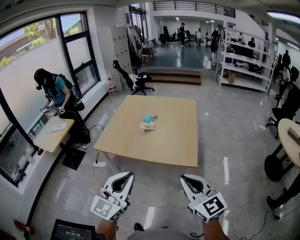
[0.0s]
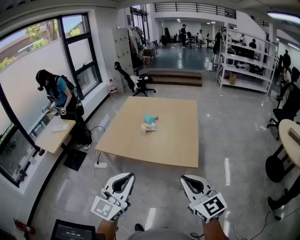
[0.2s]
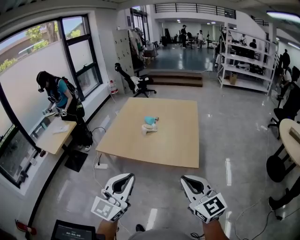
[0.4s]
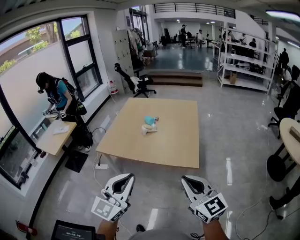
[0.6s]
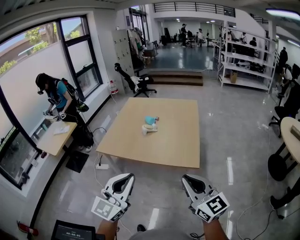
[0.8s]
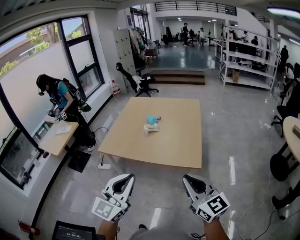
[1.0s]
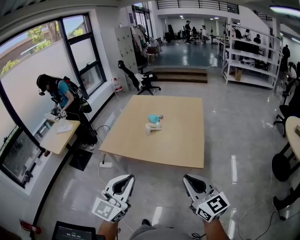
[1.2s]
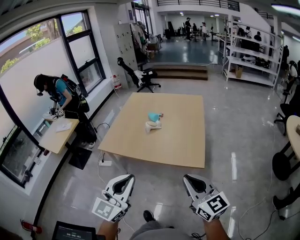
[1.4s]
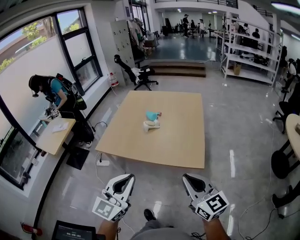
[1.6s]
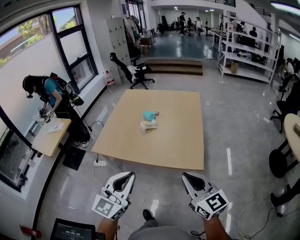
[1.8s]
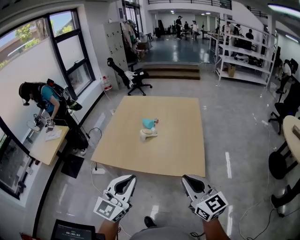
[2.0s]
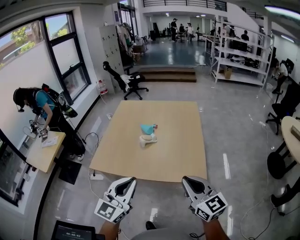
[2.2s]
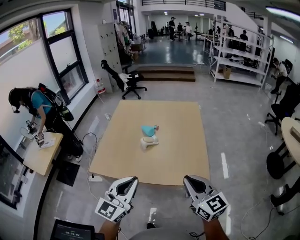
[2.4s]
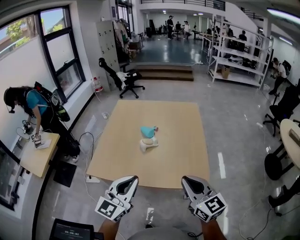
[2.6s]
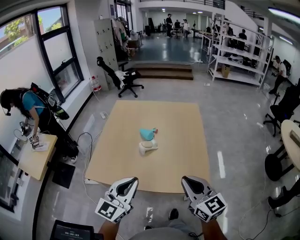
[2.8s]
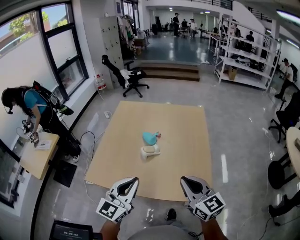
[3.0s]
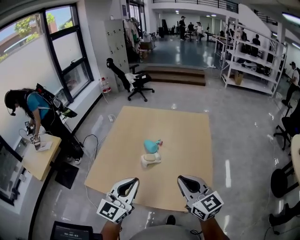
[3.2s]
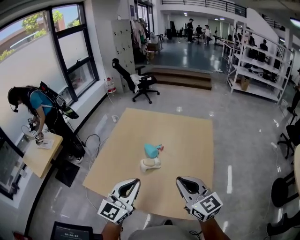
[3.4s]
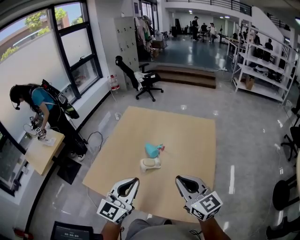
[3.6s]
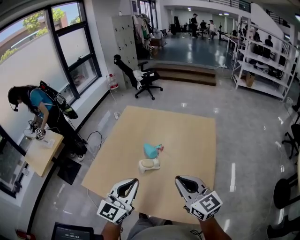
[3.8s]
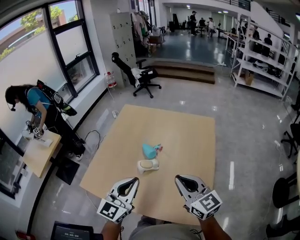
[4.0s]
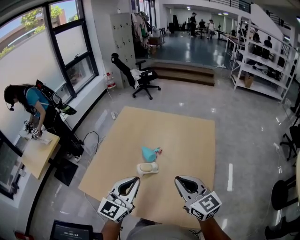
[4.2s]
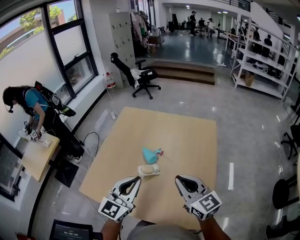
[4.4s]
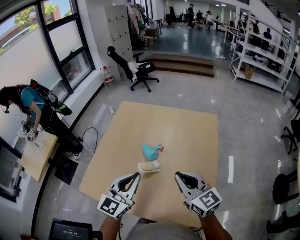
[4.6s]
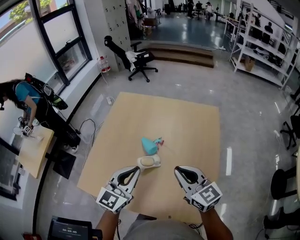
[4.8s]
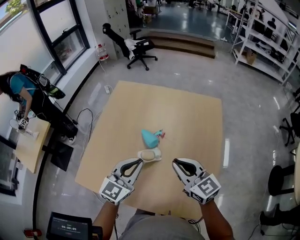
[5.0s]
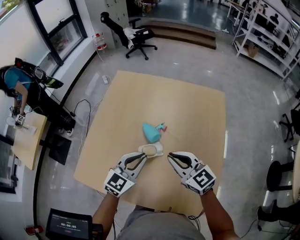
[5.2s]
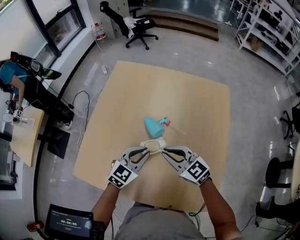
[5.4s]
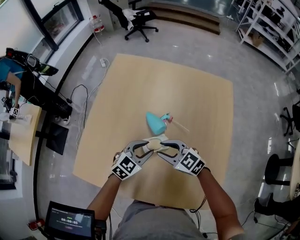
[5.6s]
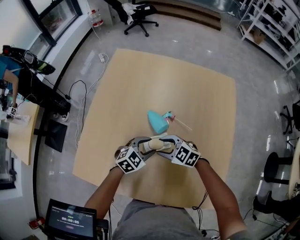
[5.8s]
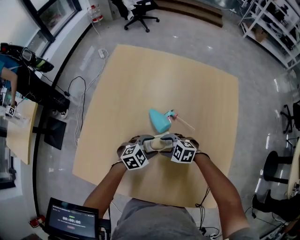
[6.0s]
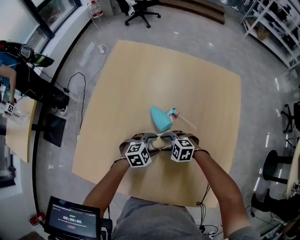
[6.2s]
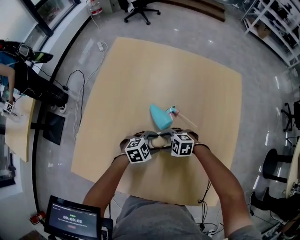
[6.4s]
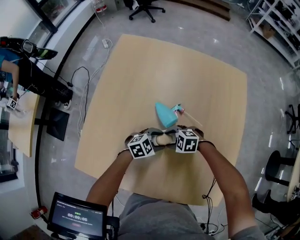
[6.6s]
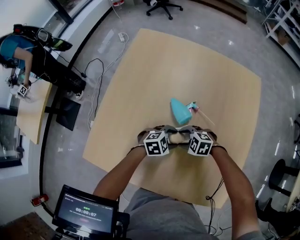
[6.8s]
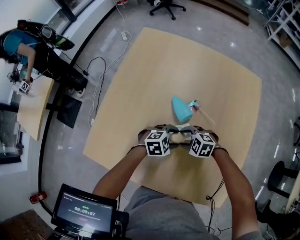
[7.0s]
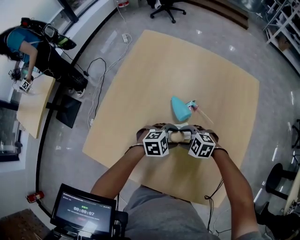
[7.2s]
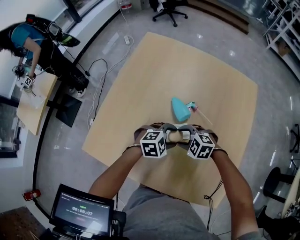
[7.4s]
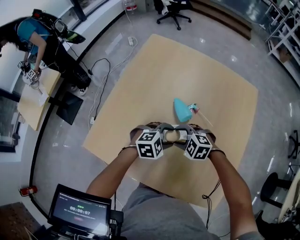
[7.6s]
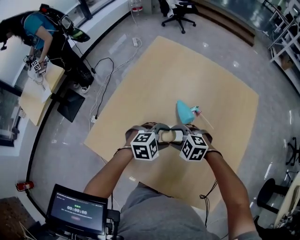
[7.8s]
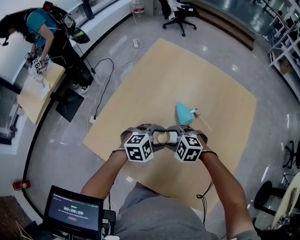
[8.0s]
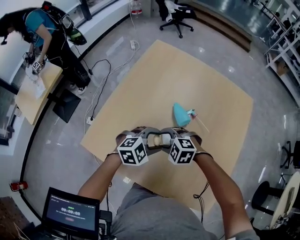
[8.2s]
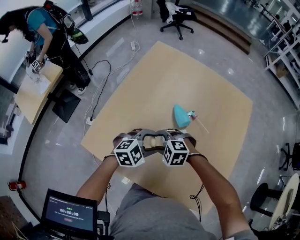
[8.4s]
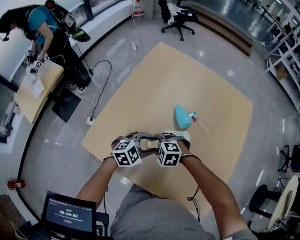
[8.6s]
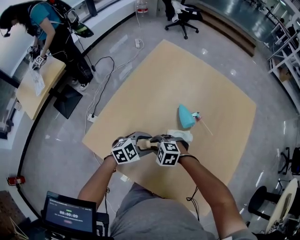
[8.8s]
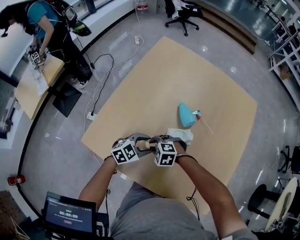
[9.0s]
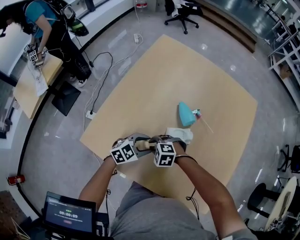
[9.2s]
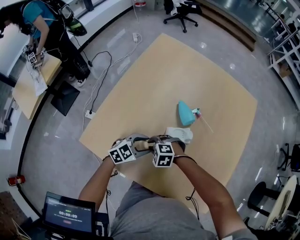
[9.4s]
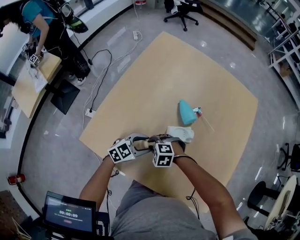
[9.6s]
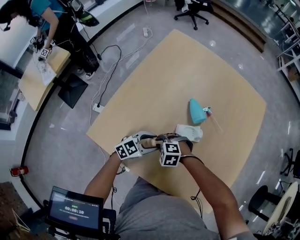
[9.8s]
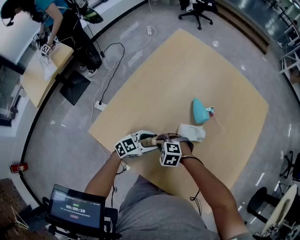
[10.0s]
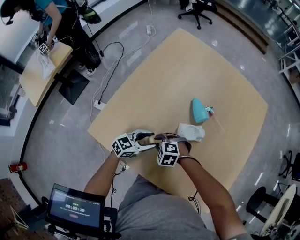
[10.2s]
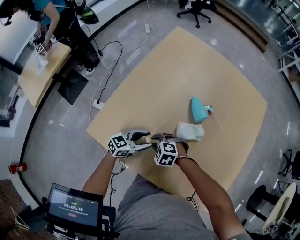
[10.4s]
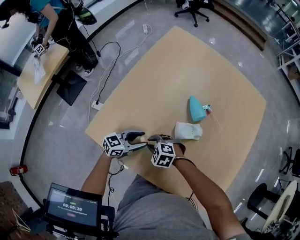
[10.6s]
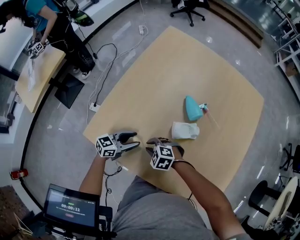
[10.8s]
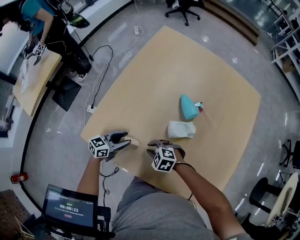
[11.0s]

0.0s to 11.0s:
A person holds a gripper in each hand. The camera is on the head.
0.0s to 1.6s: The grippers both shift forward by approximately 10 cm.
1.6s to 3.2s: Both grippers move forward, some 35 cm.
3.2s to 4.8s: The two grippers go roughly 20 cm forward.
4.8s to 6.2s: The grippers both shift downward by roughly 35 cm. The right gripper points its fingers roughly 50 degrees further downward, and opens. Meanwhile the left gripper tips its fingers downward by approximately 50 degrees, and opens.
6.2s to 7.8s: Both grippers travel together upward, roughly 10 cm.
7.8s to 9.4s: The right gripper shifts about 10 cm downward, and closes, while the left gripper changes place by roughly 10 cm, and changes its angle by roughly 30 degrees.
9.4s to 11.0s: The right gripper changes place by approximately 5 cm, while the left gripper moves some 10 cm, and swivels approximately 40 degrees.

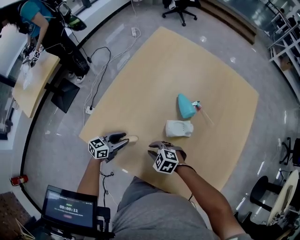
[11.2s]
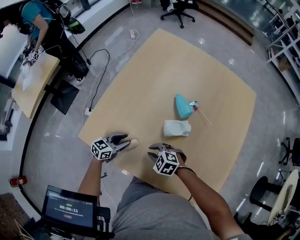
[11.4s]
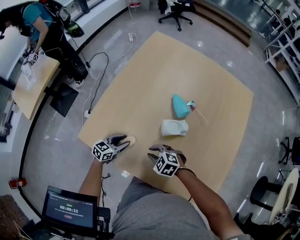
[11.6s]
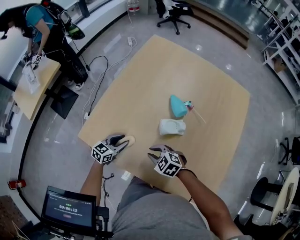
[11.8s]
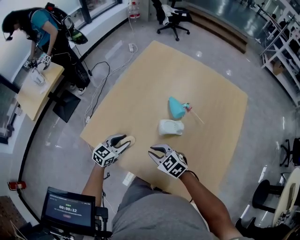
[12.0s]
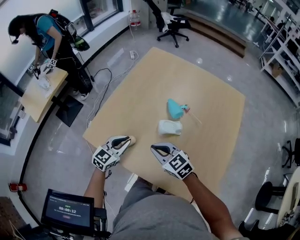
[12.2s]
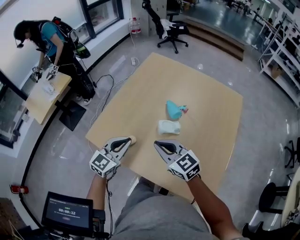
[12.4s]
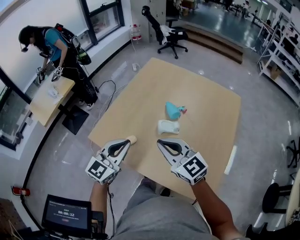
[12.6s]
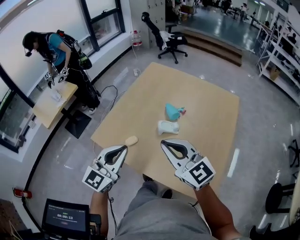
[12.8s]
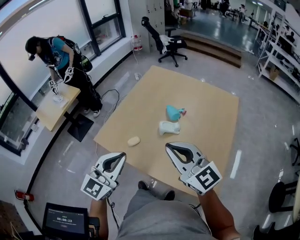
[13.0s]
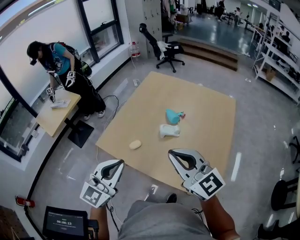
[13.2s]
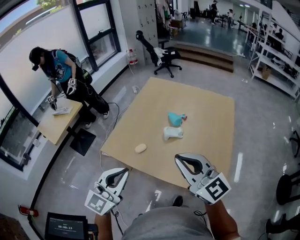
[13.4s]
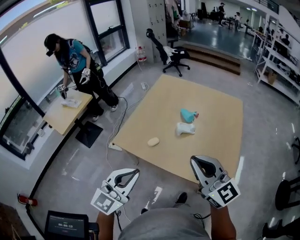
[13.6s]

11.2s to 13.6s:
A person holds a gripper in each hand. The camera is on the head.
11.2s to 12.4s: The two grippers go approximately 25 cm upward. The right gripper points its fingers some 40 degrees further upward. Meanwhile the left gripper rotates roughly 40 degrees, and closes up.
12.4s to 13.6s: Both grippers travel together backward and upward, about 30 cm. The right gripper changes its angle by some 30 degrees.

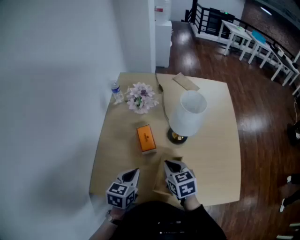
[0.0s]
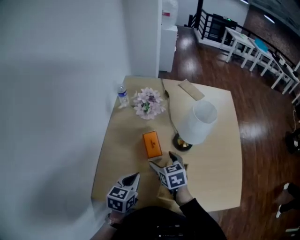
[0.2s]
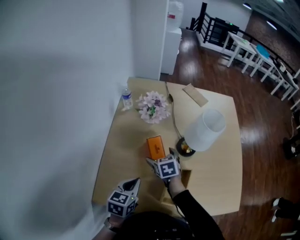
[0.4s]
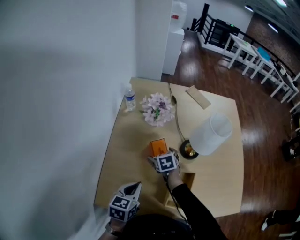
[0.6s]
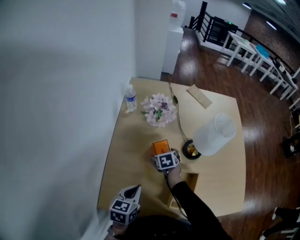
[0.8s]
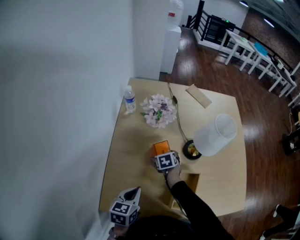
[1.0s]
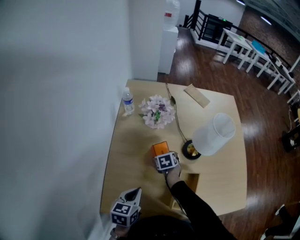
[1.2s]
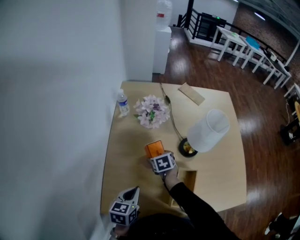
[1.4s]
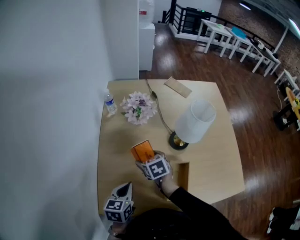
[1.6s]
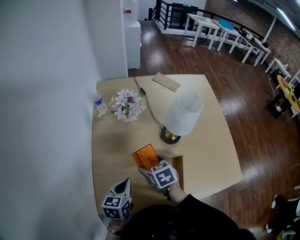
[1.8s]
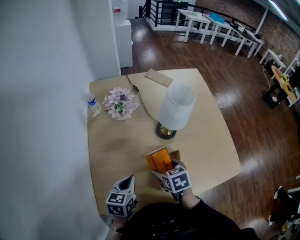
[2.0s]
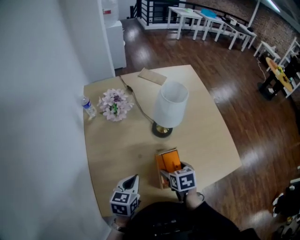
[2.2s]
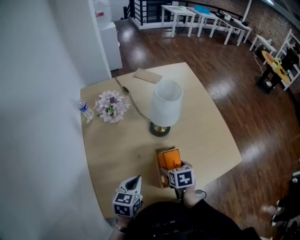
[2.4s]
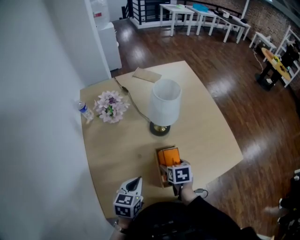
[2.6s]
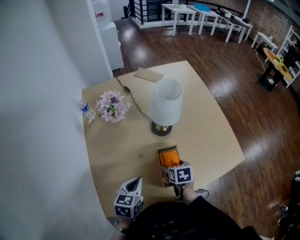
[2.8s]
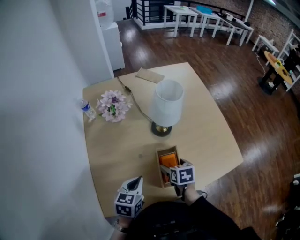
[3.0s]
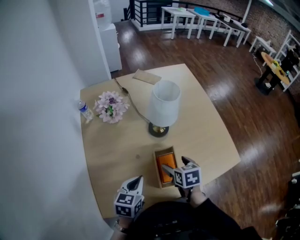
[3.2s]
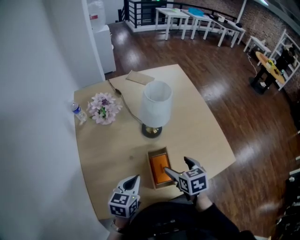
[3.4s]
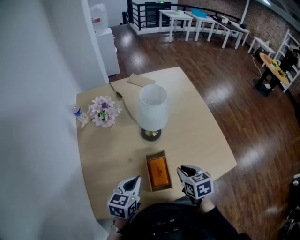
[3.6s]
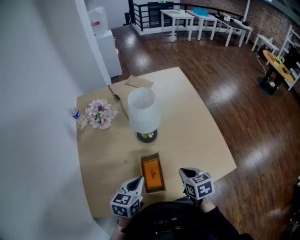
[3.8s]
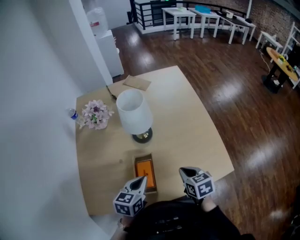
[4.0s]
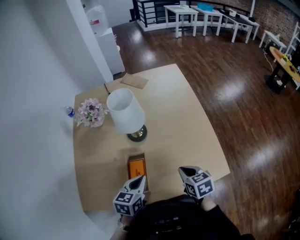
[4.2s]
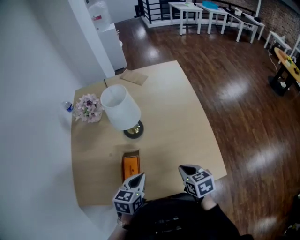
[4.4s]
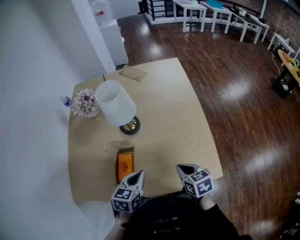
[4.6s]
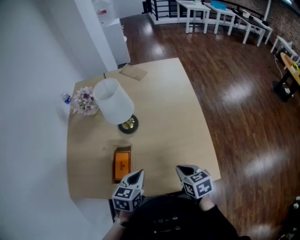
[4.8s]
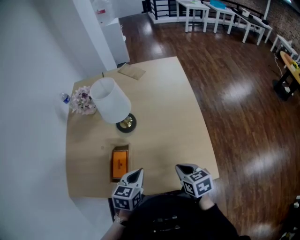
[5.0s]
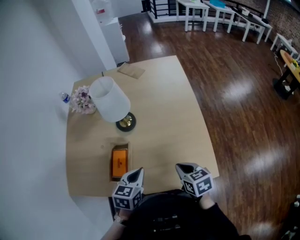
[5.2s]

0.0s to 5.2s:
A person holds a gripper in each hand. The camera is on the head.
0.0s to 1.8s: The two grippers go roughly 10 cm to the left. The right gripper moves roughly 15 cm downward and comes back, and opens up.
1.8s to 3.4s: The right gripper shifts some 20 cm to the right, and turns by roughly 20 degrees. Meanwhile the left gripper shifts some 10 cm to the right.
3.4s to 5.2s: The two grippers go about 25 cm to the right. The right gripper closes.

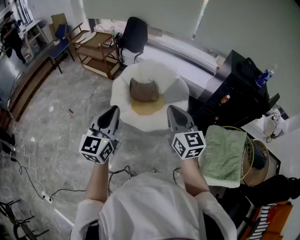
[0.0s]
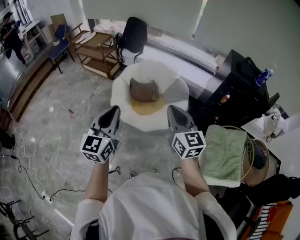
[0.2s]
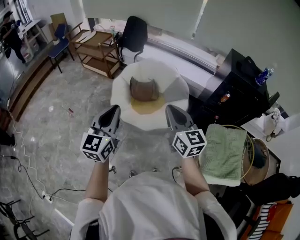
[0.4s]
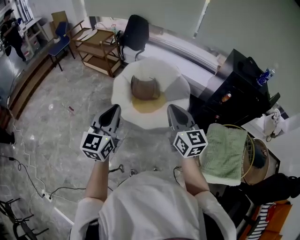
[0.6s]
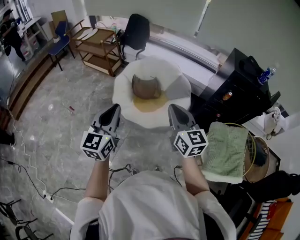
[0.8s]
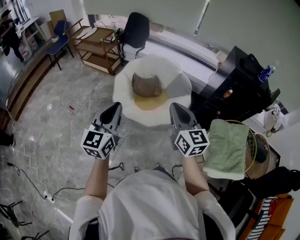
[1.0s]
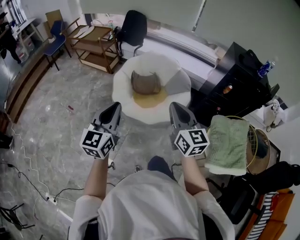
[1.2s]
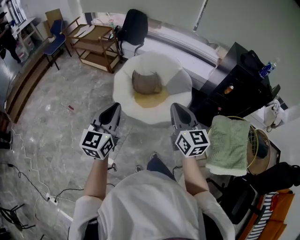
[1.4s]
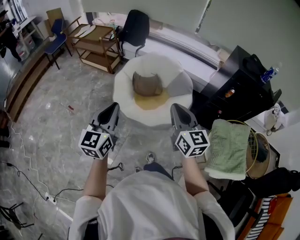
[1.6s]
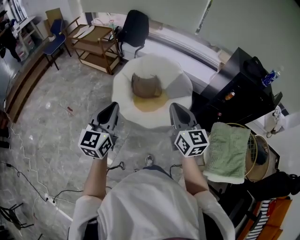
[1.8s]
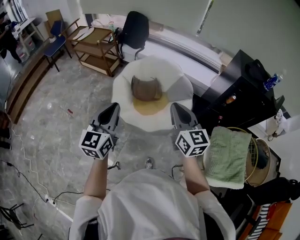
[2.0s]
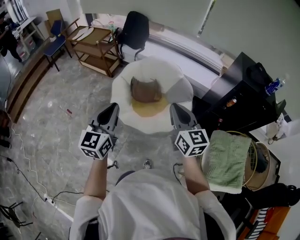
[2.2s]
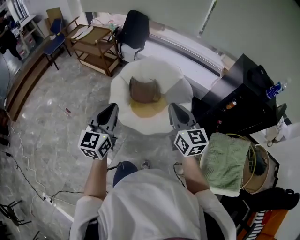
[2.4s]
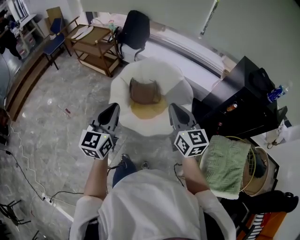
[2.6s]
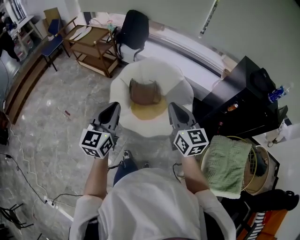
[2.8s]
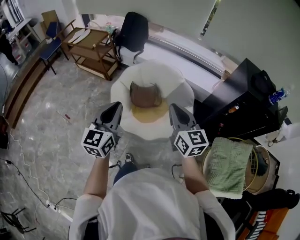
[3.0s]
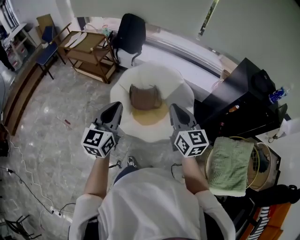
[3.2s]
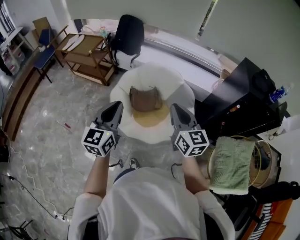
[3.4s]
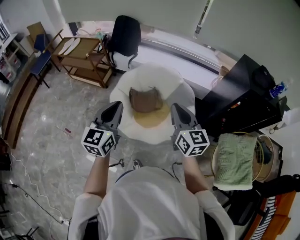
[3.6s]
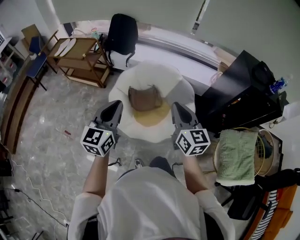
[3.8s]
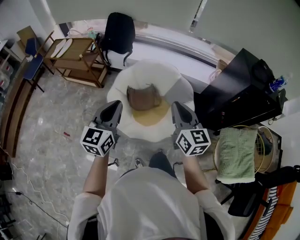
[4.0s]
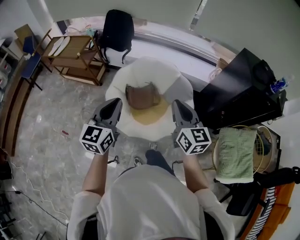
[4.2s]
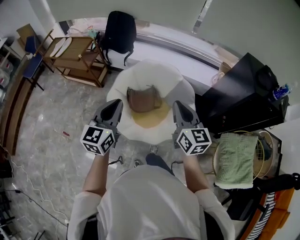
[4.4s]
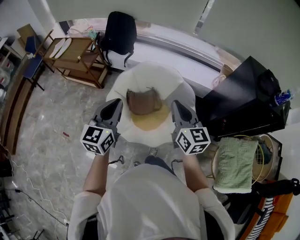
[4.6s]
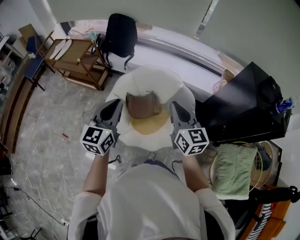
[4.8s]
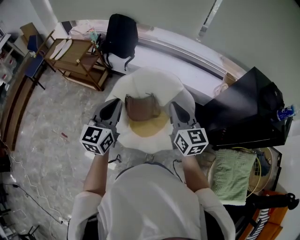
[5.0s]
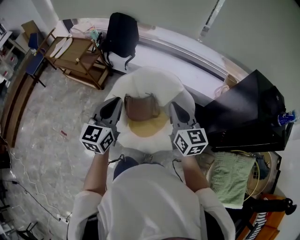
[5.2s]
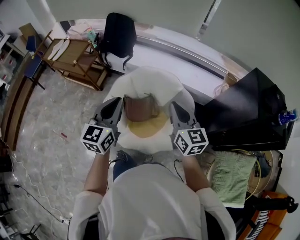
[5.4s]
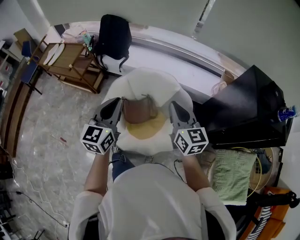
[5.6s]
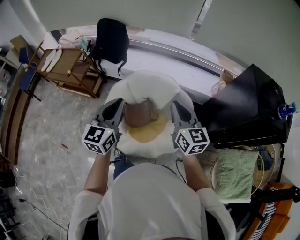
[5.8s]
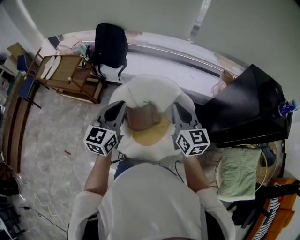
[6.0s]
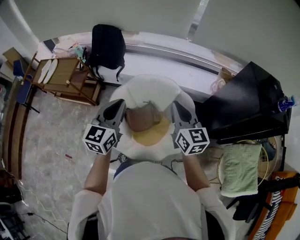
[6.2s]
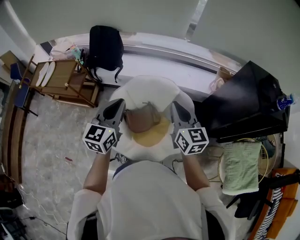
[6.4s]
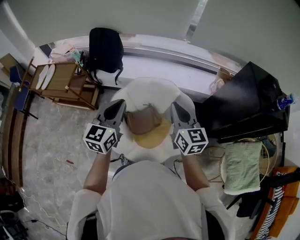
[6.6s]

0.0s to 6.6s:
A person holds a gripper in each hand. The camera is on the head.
0.0s to 1.6s: The grippers both shift to the left by roughly 5 cm.
1.6s to 3.2s: Both grippers travel together forward, about 20 cm.
3.2s to 5.0s: The two grippers go approximately 20 cm forward.
5.0s to 6.6s: The two grippers go about 10 cm forward.
